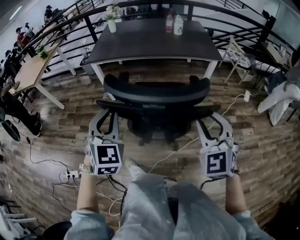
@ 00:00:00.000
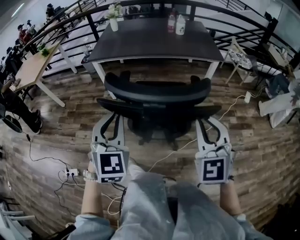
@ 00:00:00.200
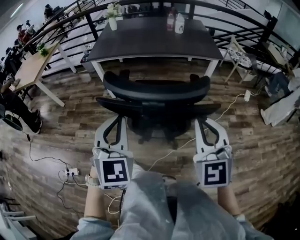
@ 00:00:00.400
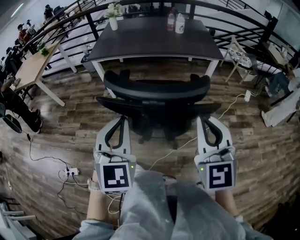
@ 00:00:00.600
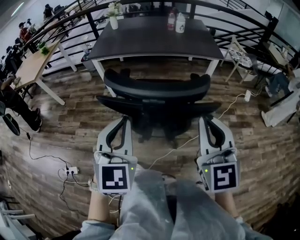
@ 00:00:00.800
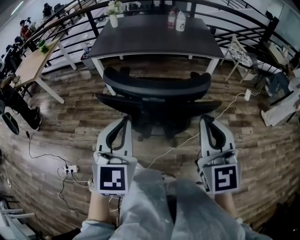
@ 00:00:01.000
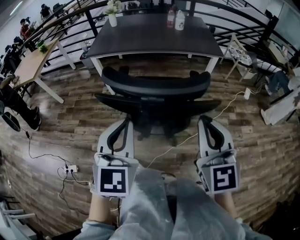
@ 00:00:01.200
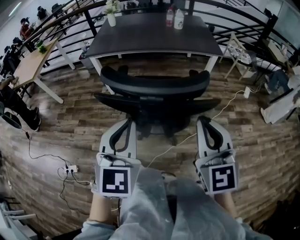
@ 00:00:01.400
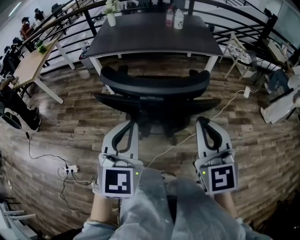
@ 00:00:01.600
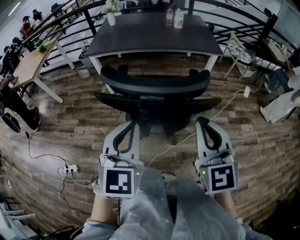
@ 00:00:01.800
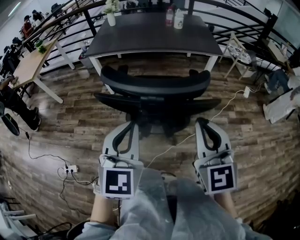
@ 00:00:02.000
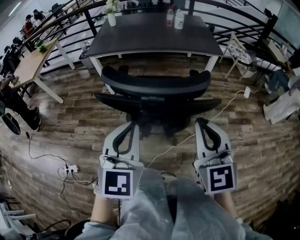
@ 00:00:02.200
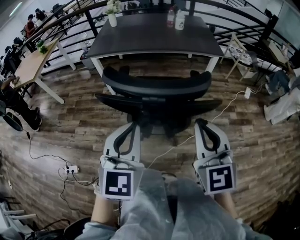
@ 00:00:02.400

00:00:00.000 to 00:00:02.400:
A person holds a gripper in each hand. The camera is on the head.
00:00:00.000 to 00:00:01.200: The left gripper travels backward and to the right by approximately 10 cm. Meanwhile the right gripper changes place by approximately 5 cm, swivels roughly 30 degrees, and closes up.
00:00:01.200 to 00:00:02.400: There are only small adjustments of the grippers.

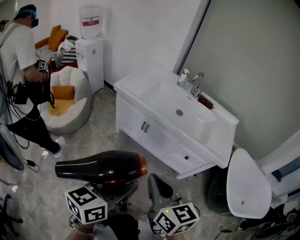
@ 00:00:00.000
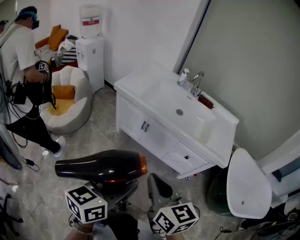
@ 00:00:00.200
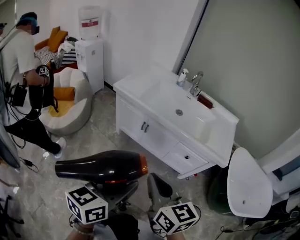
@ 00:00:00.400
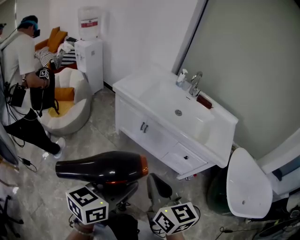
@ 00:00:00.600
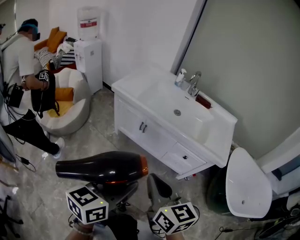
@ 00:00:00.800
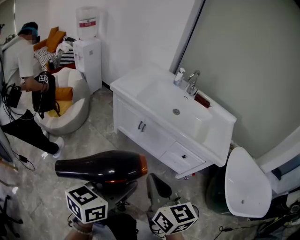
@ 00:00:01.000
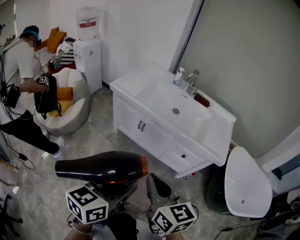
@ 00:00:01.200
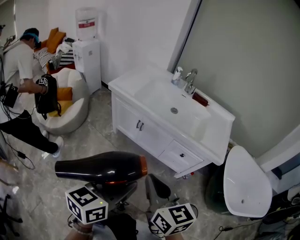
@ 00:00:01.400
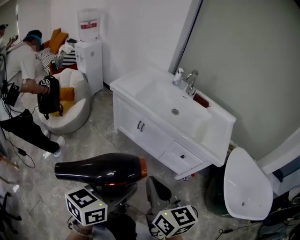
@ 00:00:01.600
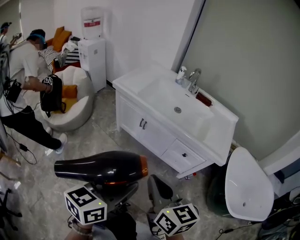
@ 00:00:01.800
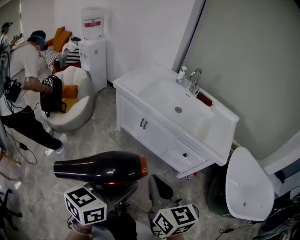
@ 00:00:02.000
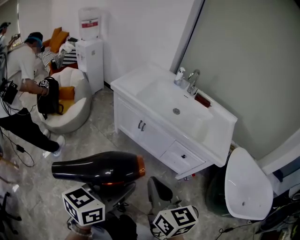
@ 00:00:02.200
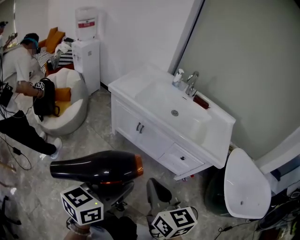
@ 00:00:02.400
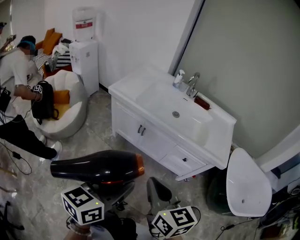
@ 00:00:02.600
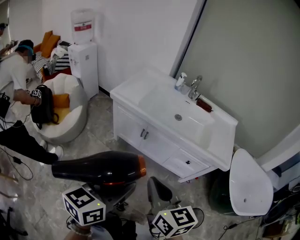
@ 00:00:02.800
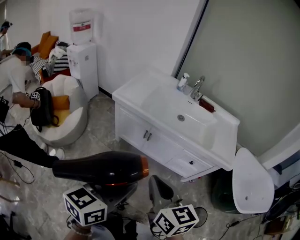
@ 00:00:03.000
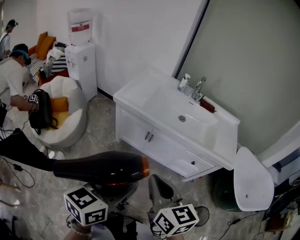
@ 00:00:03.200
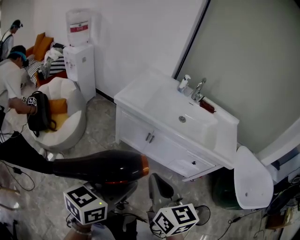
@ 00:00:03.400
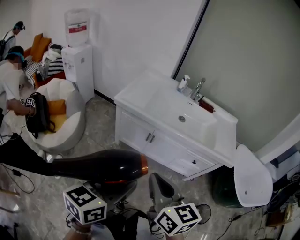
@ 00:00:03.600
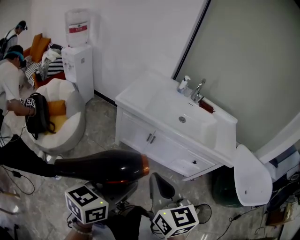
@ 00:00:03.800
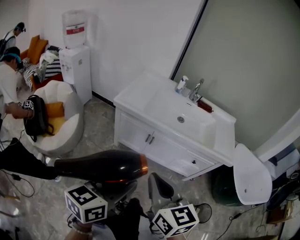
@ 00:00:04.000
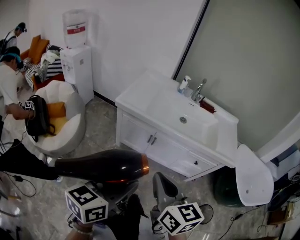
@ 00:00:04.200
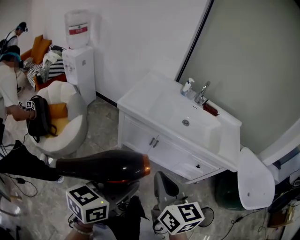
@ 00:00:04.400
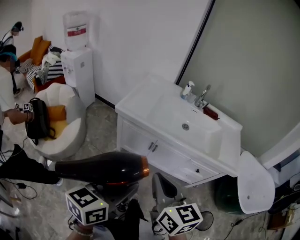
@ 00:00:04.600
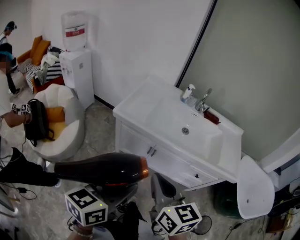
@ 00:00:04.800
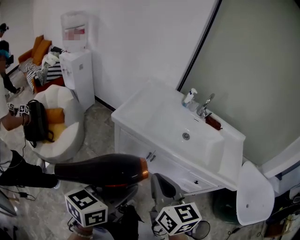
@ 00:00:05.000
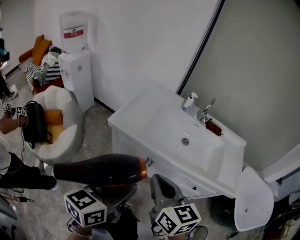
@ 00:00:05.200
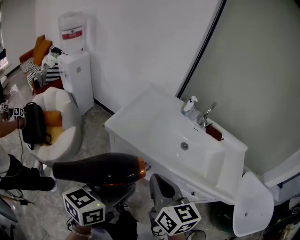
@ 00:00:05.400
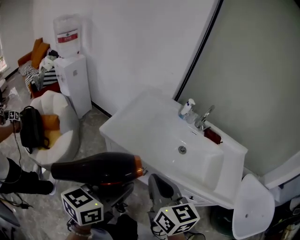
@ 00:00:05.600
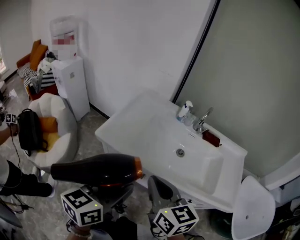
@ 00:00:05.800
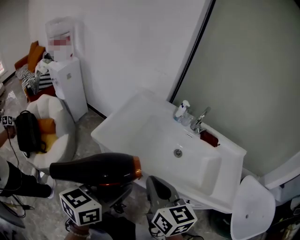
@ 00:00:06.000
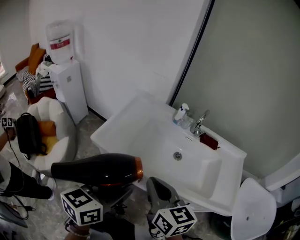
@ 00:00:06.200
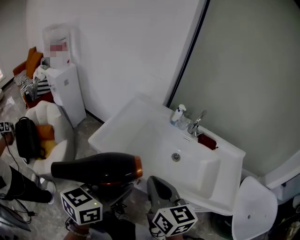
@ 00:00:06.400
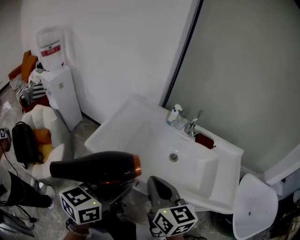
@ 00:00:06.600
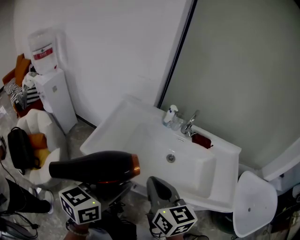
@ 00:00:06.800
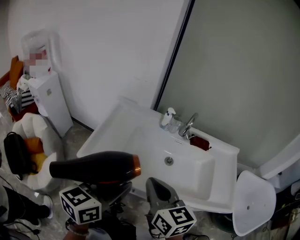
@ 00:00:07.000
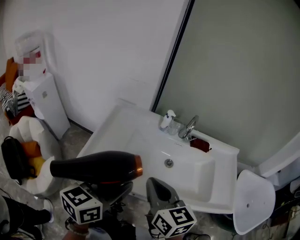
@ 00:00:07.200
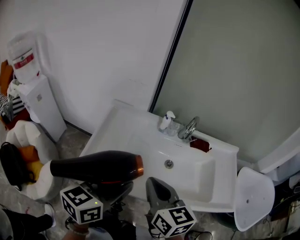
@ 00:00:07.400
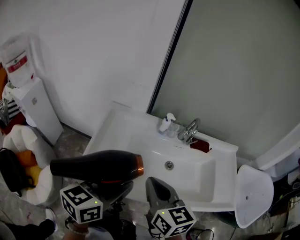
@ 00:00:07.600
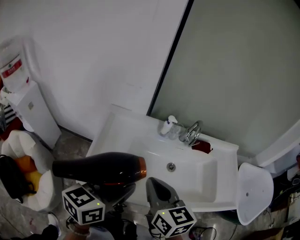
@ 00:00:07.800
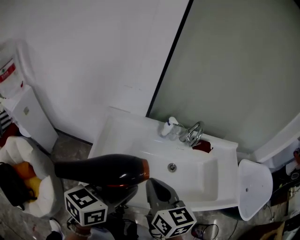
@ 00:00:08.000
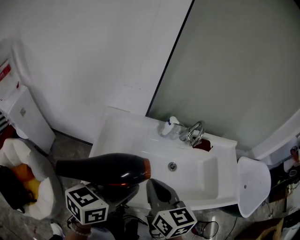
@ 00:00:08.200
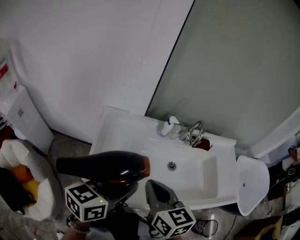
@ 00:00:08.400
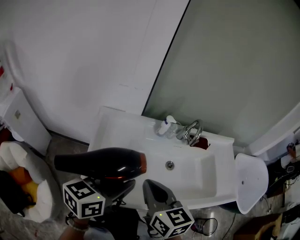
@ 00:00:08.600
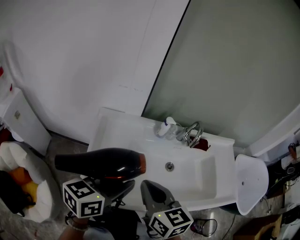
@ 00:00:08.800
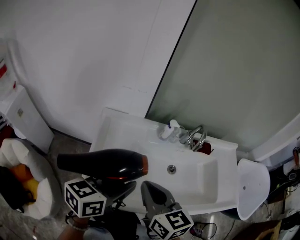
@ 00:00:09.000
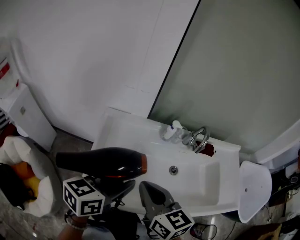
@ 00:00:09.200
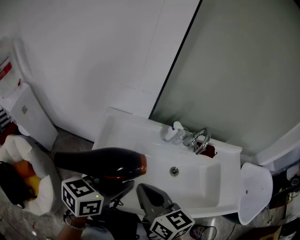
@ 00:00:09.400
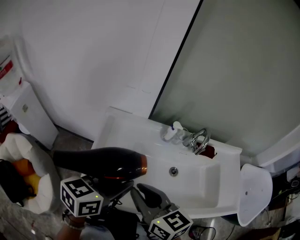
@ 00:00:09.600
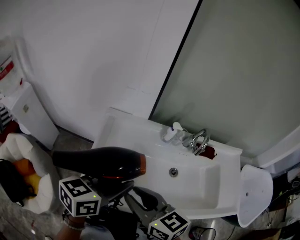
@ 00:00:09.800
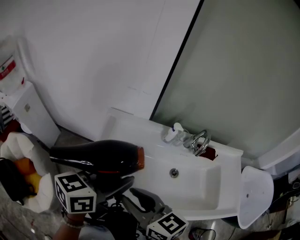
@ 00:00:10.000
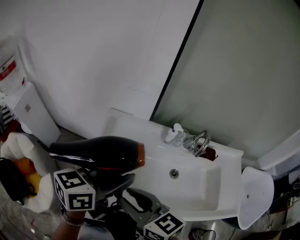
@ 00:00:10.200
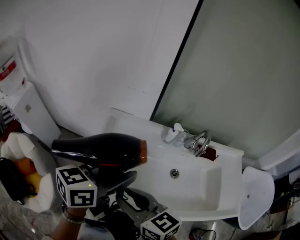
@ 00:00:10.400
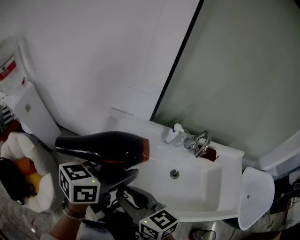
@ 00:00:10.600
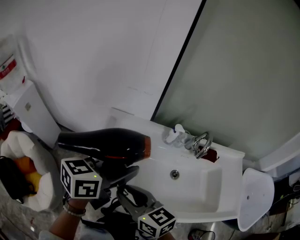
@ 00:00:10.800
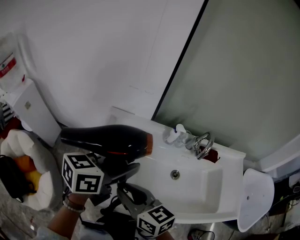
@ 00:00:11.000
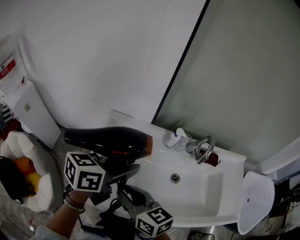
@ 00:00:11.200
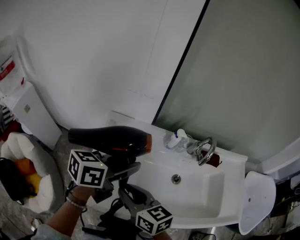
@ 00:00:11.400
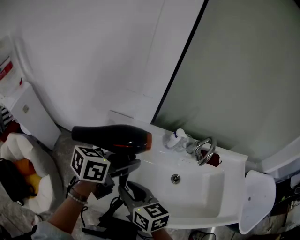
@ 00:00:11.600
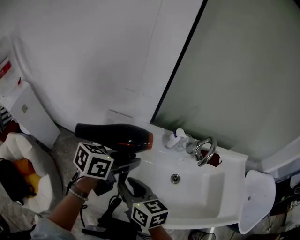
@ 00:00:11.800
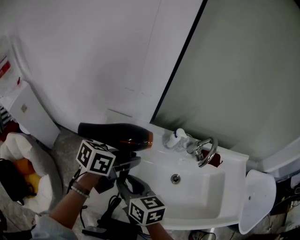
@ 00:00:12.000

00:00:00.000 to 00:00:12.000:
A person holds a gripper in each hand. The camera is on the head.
00:00:00.000 to 00:00:01.600: The grippers both shift to the right by roughly 5 cm.
00:00:01.600 to 00:00:03.000: The two grippers go approximately 15 cm to the left and forward.
00:00:03.000 to 00:00:04.400: The grippers both shift to the left by approximately 10 cm.
00:00:04.400 to 00:00:06.000: Both grippers move forward, approximately 30 cm.
00:00:06.000 to 00:00:07.600: The two grippers go approximately 15 cm forward.
00:00:07.600 to 00:00:09.000: The left gripper goes roughly 10 cm forward and to the left. Meanwhile the right gripper shifts roughly 10 cm to the left and forward.
00:00:09.000 to 00:00:10.400: The left gripper heads upward, covering roughly 5 cm. The right gripper goes about 5 cm to the left, swivels approximately 30 degrees, and opens.
00:00:10.400 to 00:00:12.000: The two grippers go approximately 15 cm forward and downward.

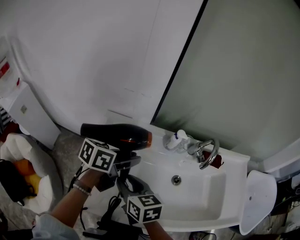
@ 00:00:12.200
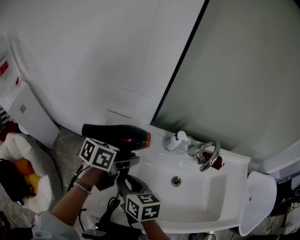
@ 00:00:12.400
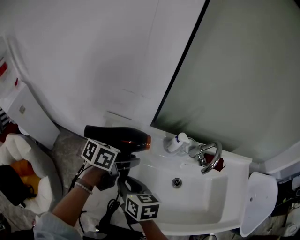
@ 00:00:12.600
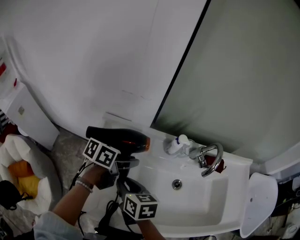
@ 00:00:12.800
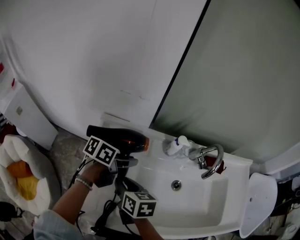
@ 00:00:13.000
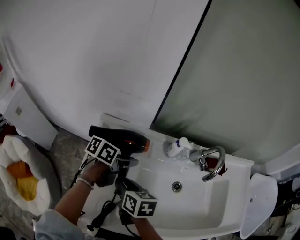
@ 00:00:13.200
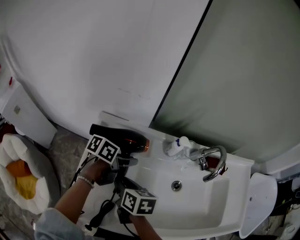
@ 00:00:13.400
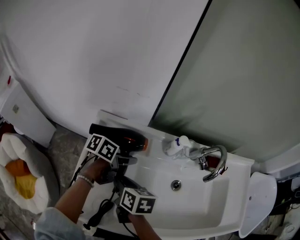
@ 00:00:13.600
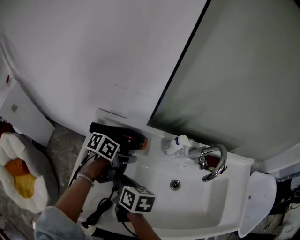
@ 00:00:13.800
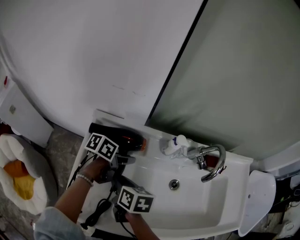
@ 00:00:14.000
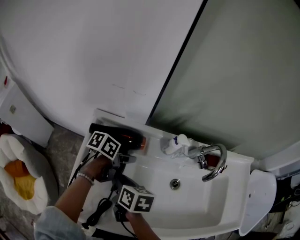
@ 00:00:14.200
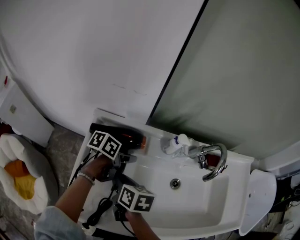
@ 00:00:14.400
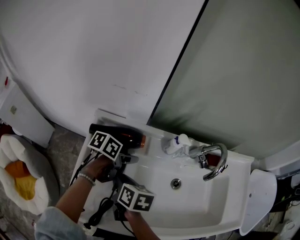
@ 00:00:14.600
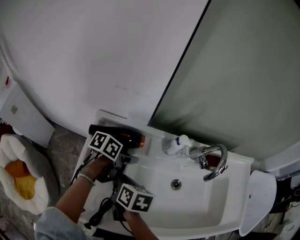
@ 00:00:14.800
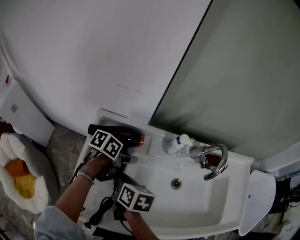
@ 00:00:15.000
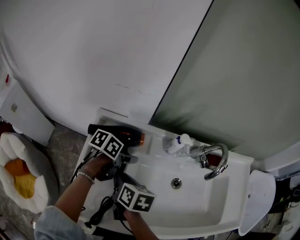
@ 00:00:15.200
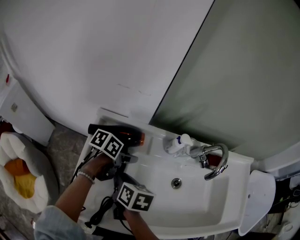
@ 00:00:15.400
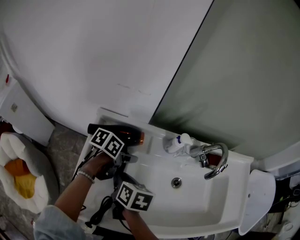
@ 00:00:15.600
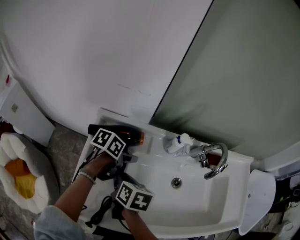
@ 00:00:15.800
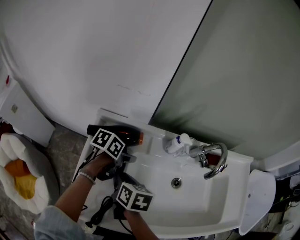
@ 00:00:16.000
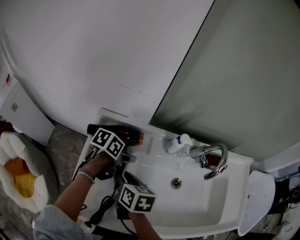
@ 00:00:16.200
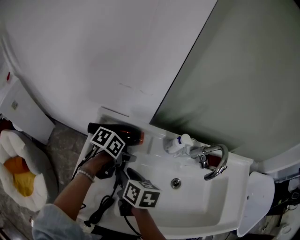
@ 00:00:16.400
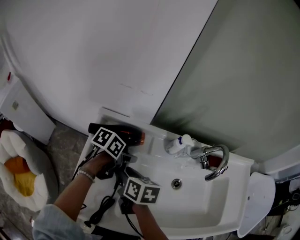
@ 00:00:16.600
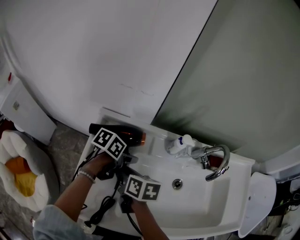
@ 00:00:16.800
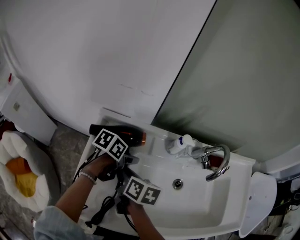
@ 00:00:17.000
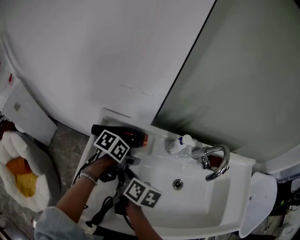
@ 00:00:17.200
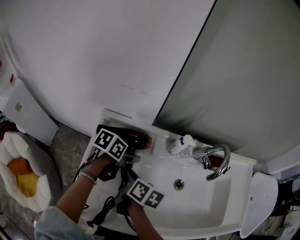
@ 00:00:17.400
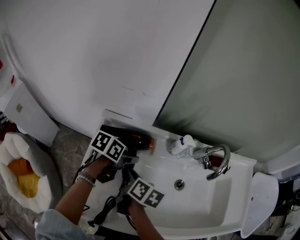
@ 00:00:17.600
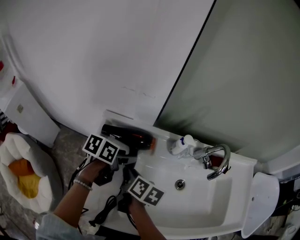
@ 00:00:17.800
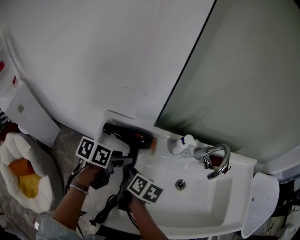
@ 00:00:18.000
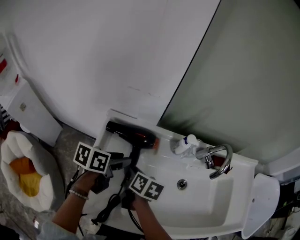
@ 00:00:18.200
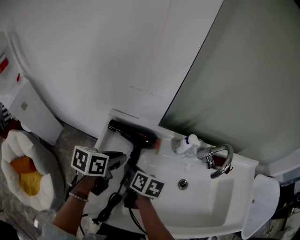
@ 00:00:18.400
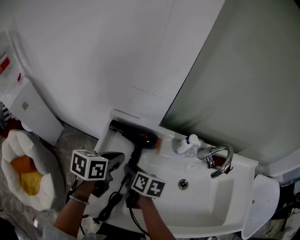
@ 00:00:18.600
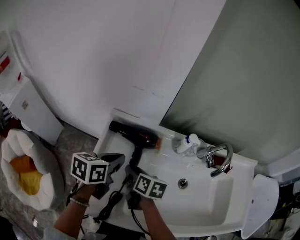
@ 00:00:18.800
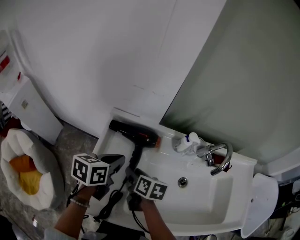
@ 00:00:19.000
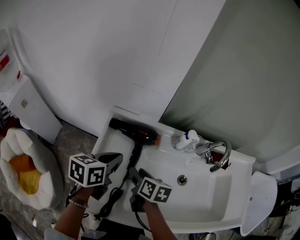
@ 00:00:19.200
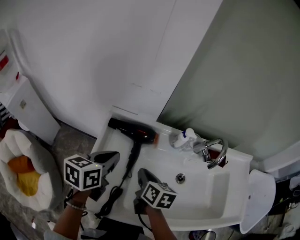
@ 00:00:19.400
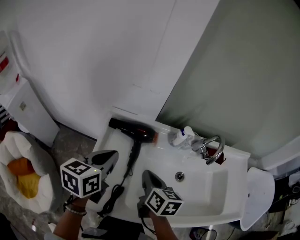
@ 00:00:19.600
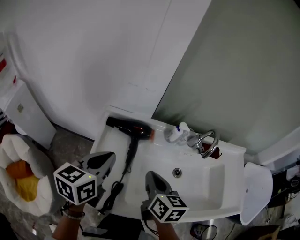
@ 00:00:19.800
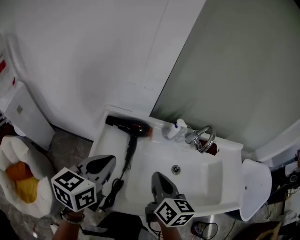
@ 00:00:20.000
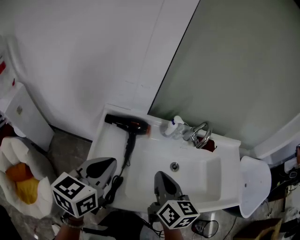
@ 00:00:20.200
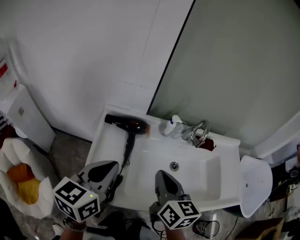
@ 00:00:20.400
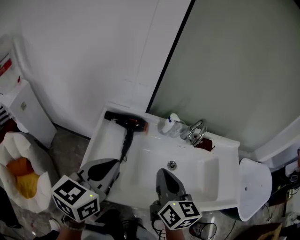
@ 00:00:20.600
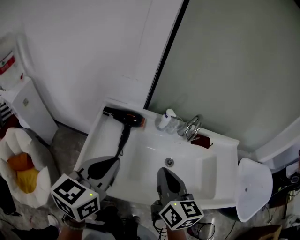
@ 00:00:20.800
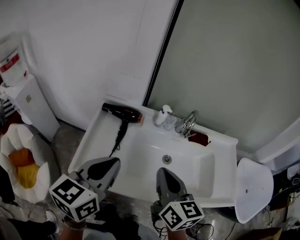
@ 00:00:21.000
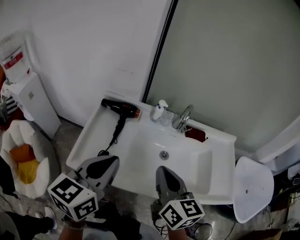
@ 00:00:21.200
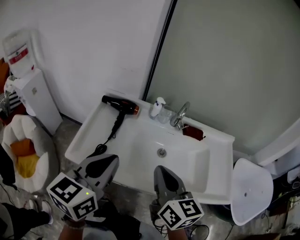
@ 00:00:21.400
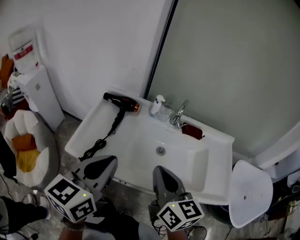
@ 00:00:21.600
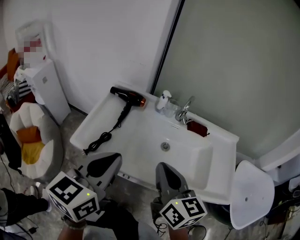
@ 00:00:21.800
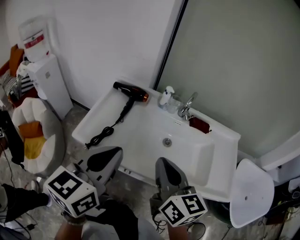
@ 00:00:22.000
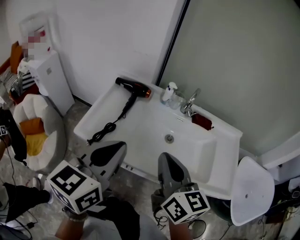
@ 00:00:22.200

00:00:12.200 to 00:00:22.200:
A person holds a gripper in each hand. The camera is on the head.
00:00:12.200 to 00:00:13.600: The two grippers go roughly 10 cm downward and forward. The right gripper changes its angle by roughly 20 degrees, while the left gripper rotates roughly 20 degrees.
00:00:13.600 to 00:00:15.000: The left gripper opens.
00:00:15.000 to 00:00:16.400: The grippers stay close to where they were, moving slightly.
00:00:16.400 to 00:00:18.000: The left gripper moves upward, about 5 cm.
00:00:18.000 to 00:00:19.400: The left gripper moves upward and backward, some 10 cm, rotates some 20 degrees, and closes its fingers, while the right gripper changes place by about 5 cm.
00:00:19.400 to 00:00:20.800: The right gripper moves upward, backward and to the right, some 25 cm, and changes its angle by about 30 degrees. The left gripper goes some 25 cm backward, upward and to the right, and turns by about 20 degrees.
00:00:20.800 to 00:00:22.200: The two grippers go some 15 cm backward and to the right.
